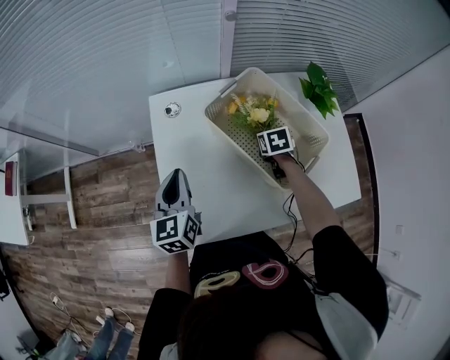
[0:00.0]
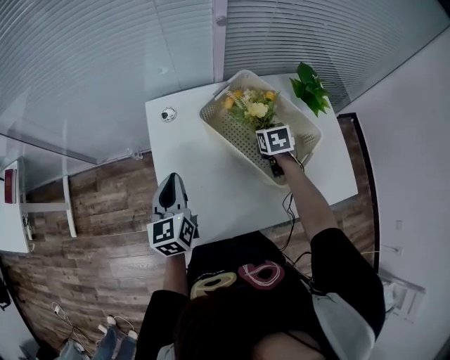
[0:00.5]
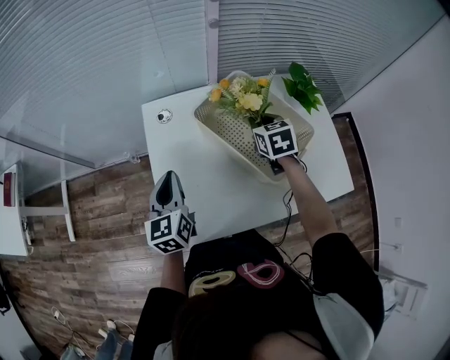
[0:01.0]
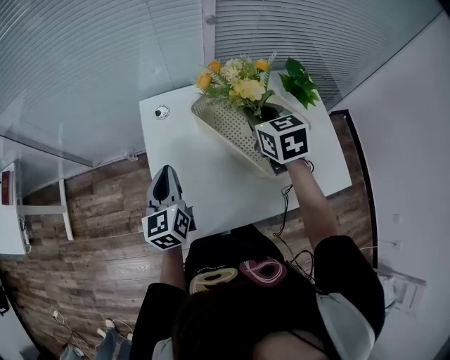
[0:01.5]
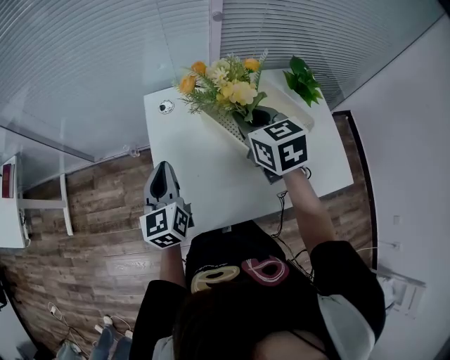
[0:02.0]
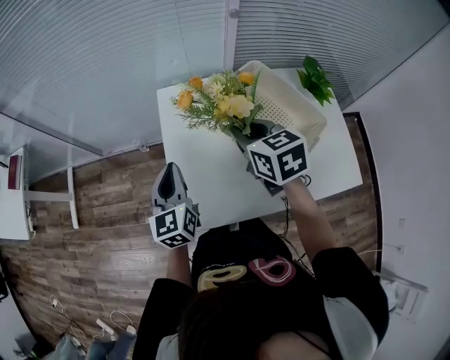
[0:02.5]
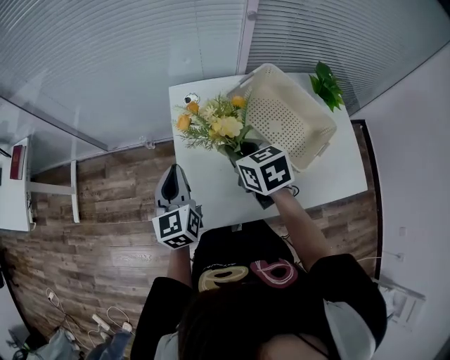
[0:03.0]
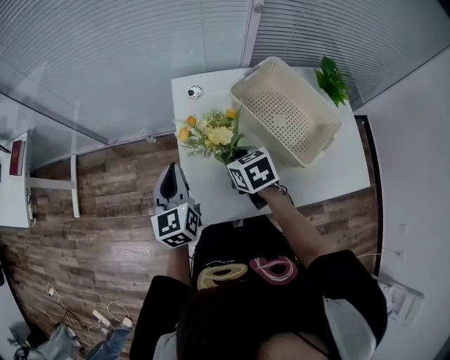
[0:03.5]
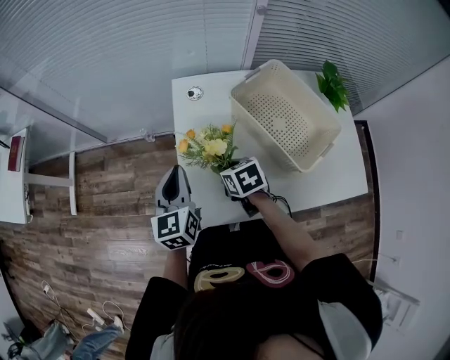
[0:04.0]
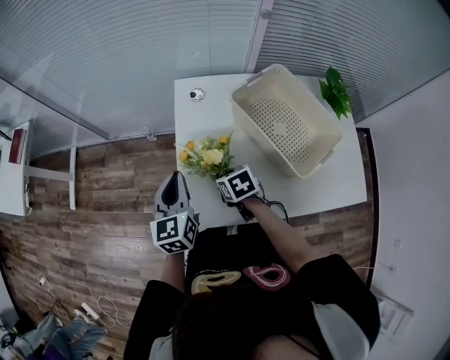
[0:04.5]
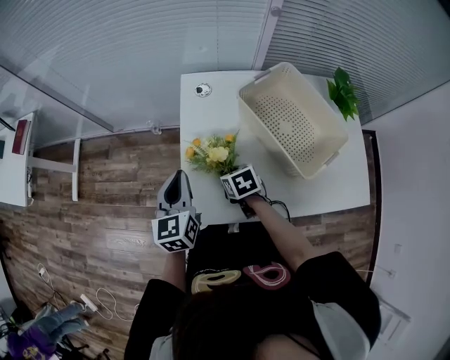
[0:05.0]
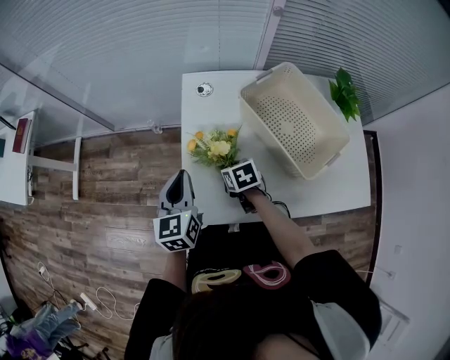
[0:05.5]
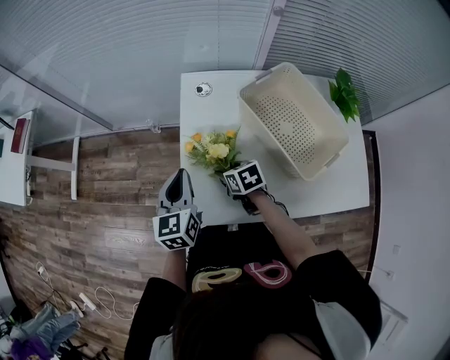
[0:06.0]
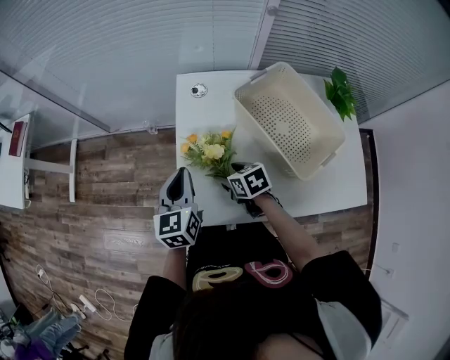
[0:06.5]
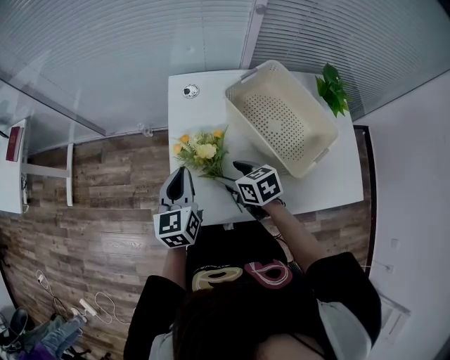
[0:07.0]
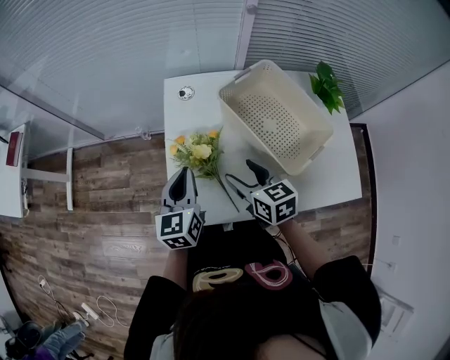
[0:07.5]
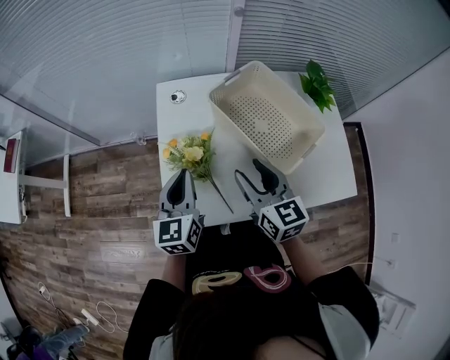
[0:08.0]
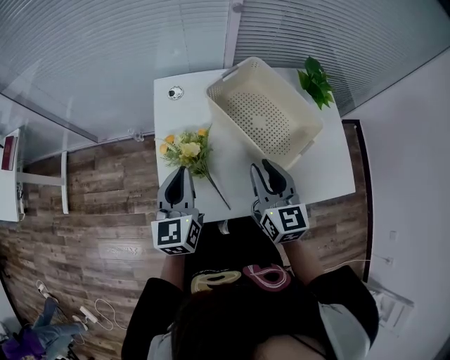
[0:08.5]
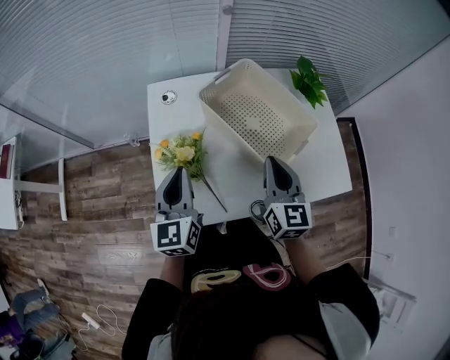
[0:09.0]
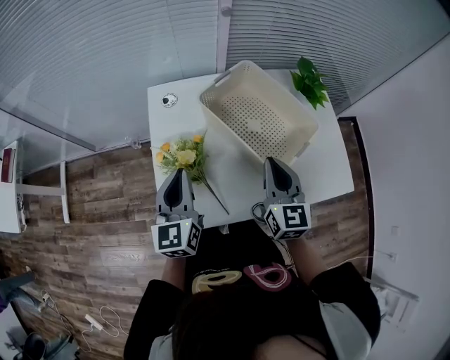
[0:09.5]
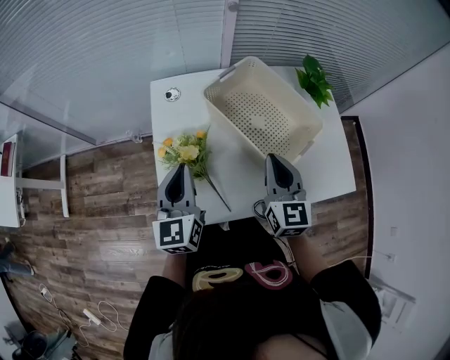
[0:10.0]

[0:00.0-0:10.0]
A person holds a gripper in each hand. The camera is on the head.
0:00.0 to 0:02.0: The right gripper shifts approximately 30 cm upward and to the left, and points its fingers approximately 30 degrees further upward.
0:02.0 to 0:04.0: The left gripper heads to the left, covering some 5 cm. Meanwhile the right gripper heads downward and to the left, covering approximately 25 cm, and swivels some 30 degrees.
0:04.0 to 0:06.0: The right gripper heads downward, covering some 5 cm, and opens up.
0:06.0 to 0:08.0: The right gripper is displaced upward and to the right by some 25 cm, and angles its fingers upward, by some 40 degrees, while the left gripper heads to the right, covering approximately 10 cm.
0:08.0 to 0:10.0: The right gripper goes some 5 cm to the right, rotates approximately 20 degrees, and closes.

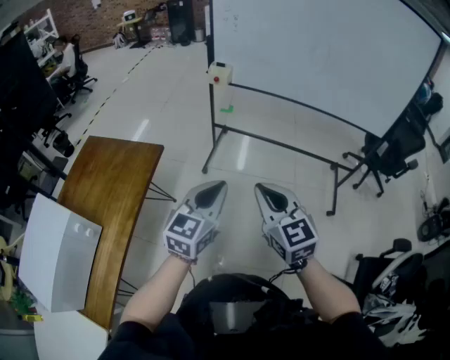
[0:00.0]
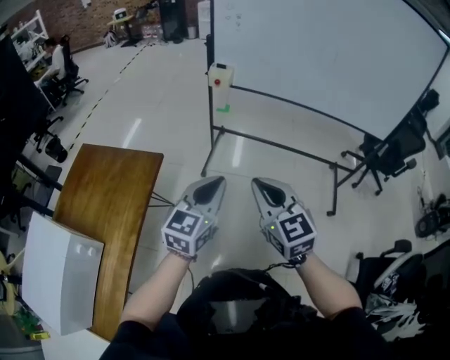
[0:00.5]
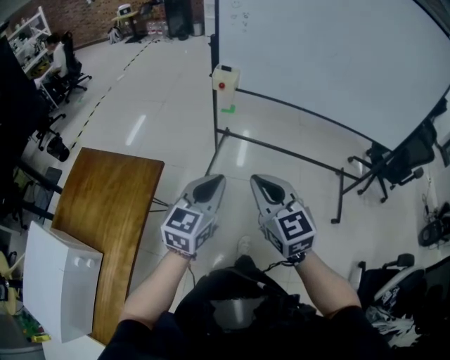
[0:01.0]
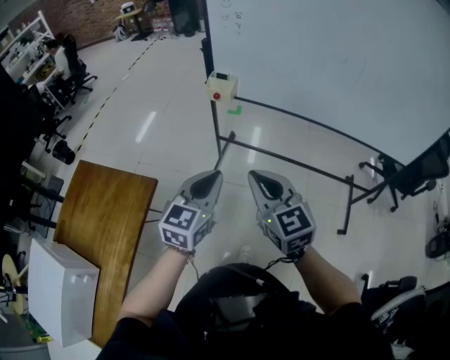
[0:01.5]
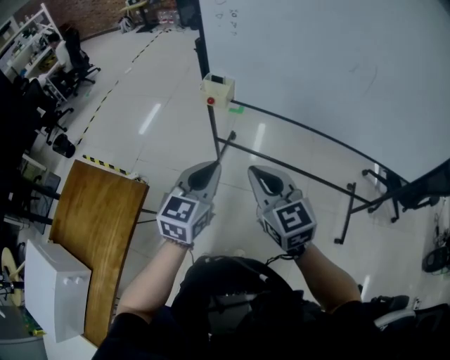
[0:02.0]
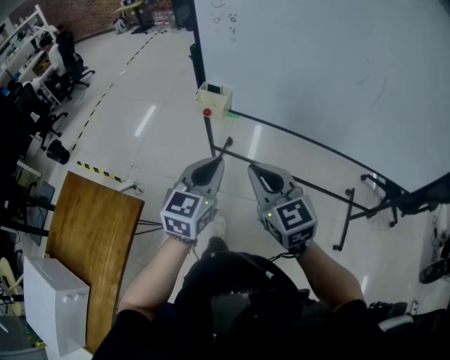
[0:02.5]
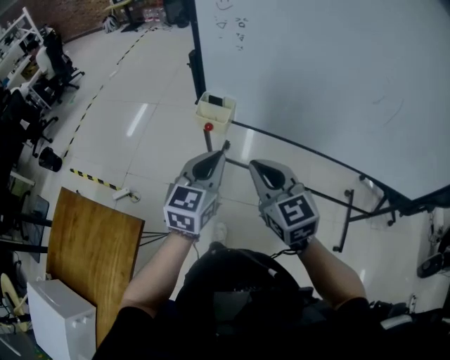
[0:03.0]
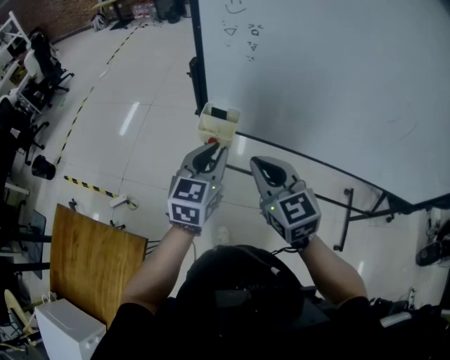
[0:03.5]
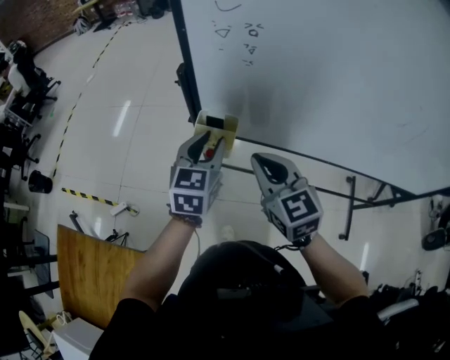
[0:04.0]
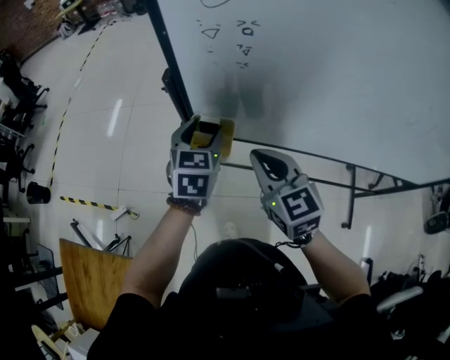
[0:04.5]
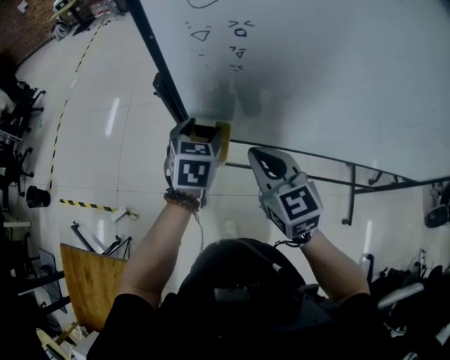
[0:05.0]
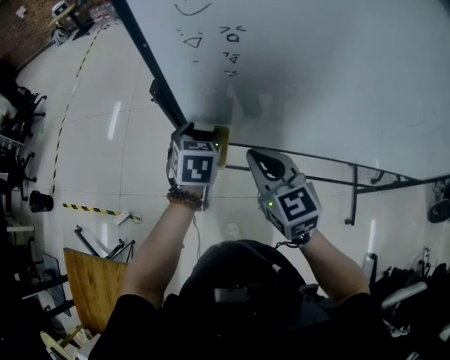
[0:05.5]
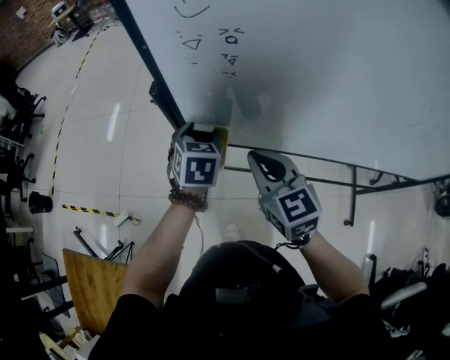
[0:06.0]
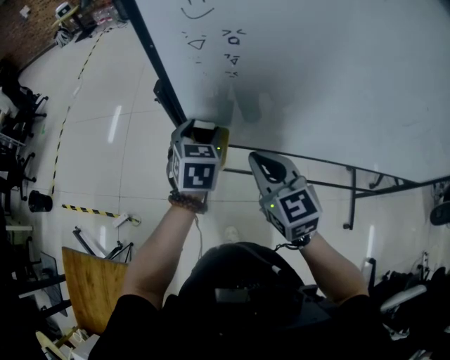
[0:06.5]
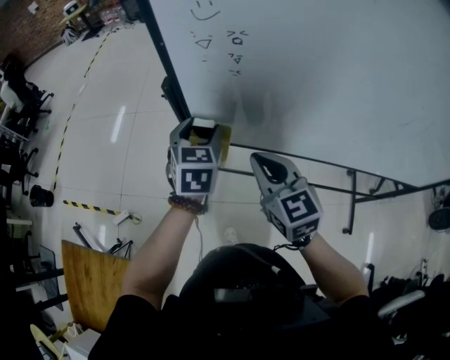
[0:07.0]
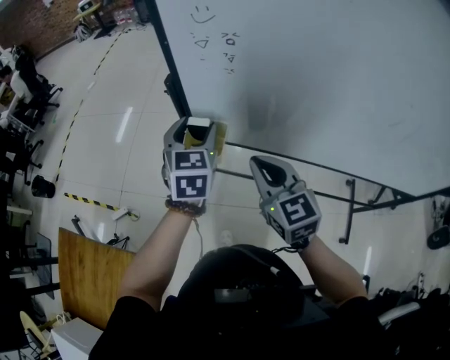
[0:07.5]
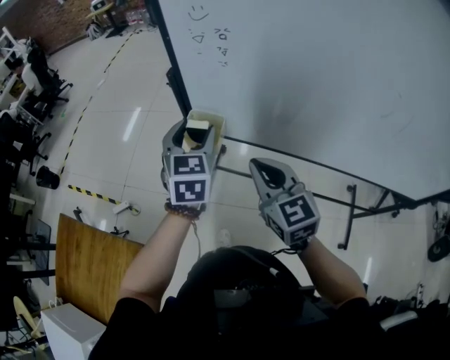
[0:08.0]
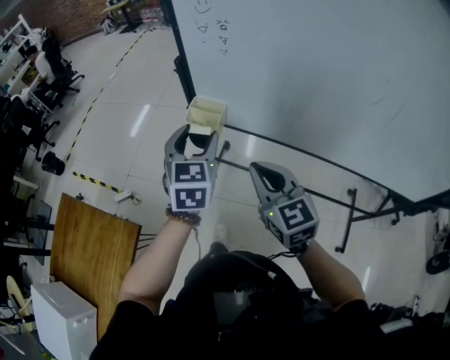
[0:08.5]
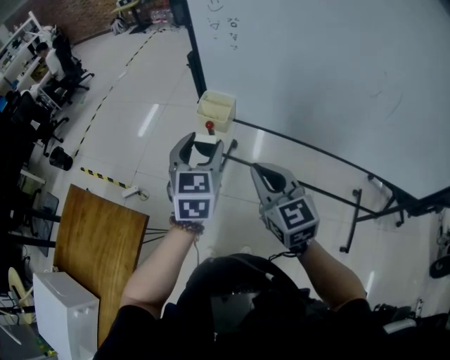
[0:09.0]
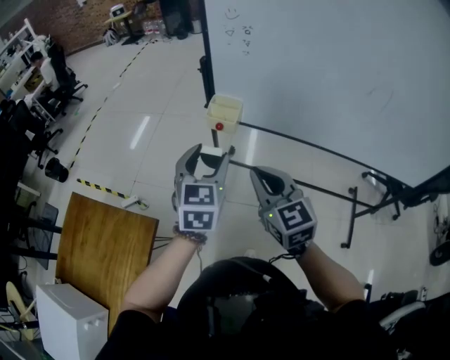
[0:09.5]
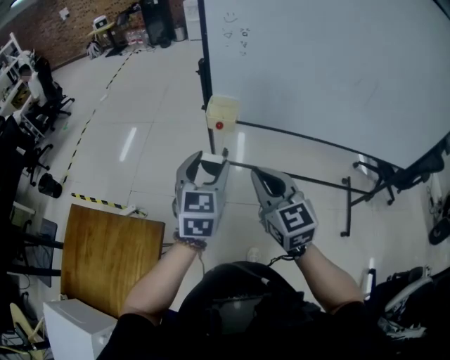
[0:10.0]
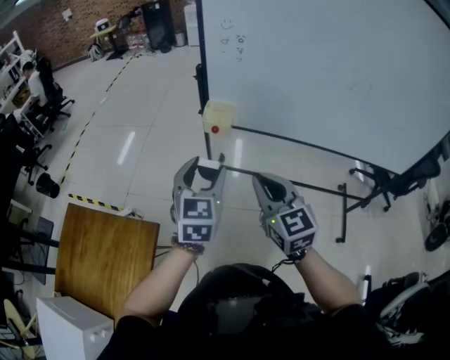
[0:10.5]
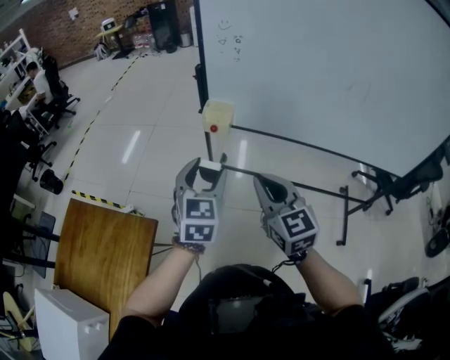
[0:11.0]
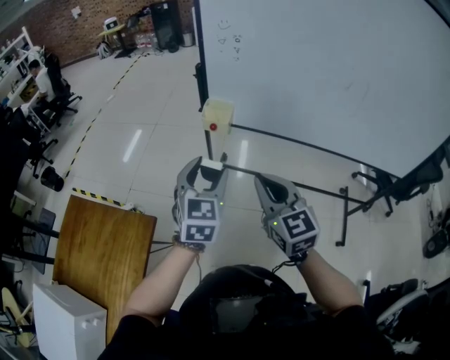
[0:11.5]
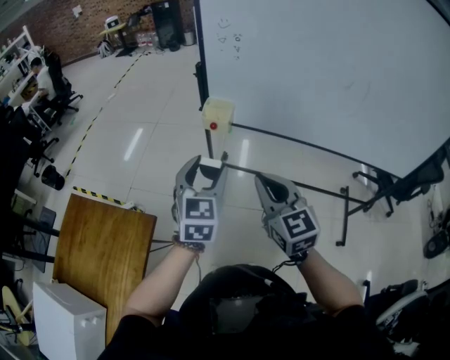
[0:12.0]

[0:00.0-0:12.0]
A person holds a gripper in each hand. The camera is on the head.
0:00.0 to 0:02.0: Both grippers move forward, roughly 35 cm.
0:02.0 to 0:04.0: The two grippers go approximately 30 cm forward. The left gripper opens its fingers.
0:04.0 to 0:06.0: The right gripper moves forward, some 5 cm. Meanwhile the left gripper is displaced forward and downward by roughly 10 cm, rotates approximately 20 degrees, and opens.
0:06.0 to 0:08.0: The right gripper is displaced backward by approximately 10 cm. Meanwhile the left gripper travels upward and backward by some 15 cm, and rotates approximately 20 degrees.
0:08.0 to 0:10.0: The two grippers go roughly 20 cm backward and to the left.
0:10.0 to 0:12.0: The right gripper shifts by about 5 cm.

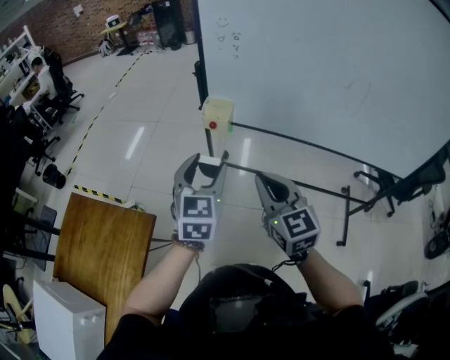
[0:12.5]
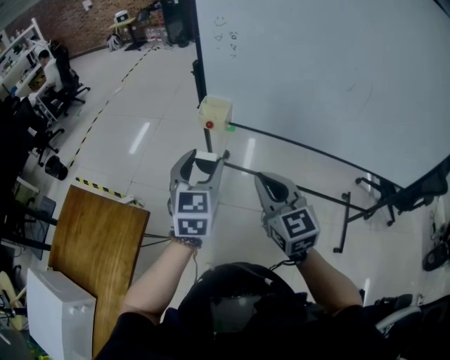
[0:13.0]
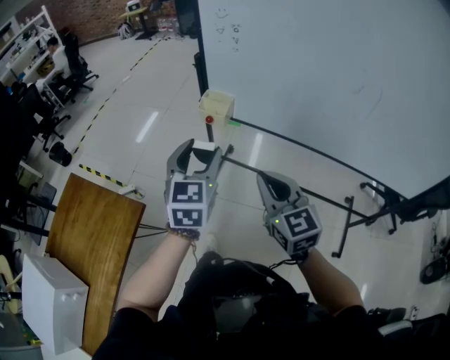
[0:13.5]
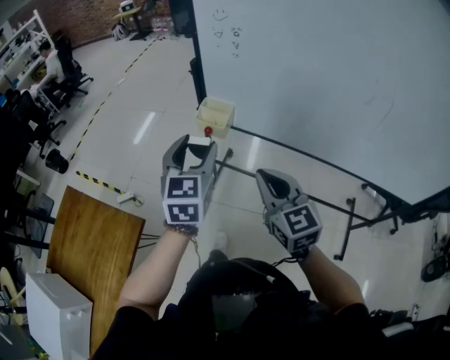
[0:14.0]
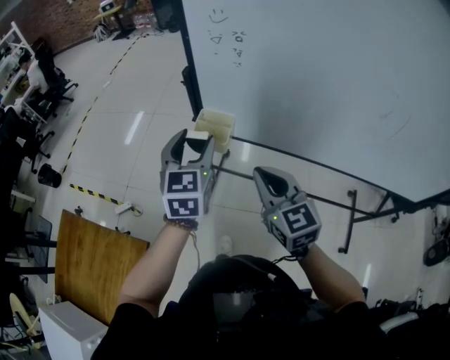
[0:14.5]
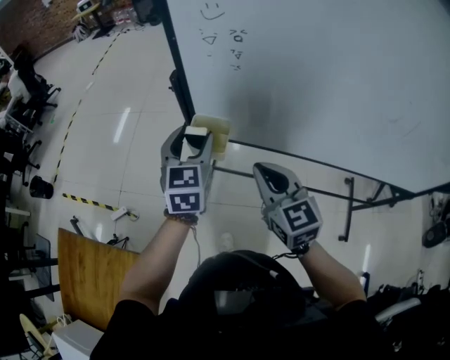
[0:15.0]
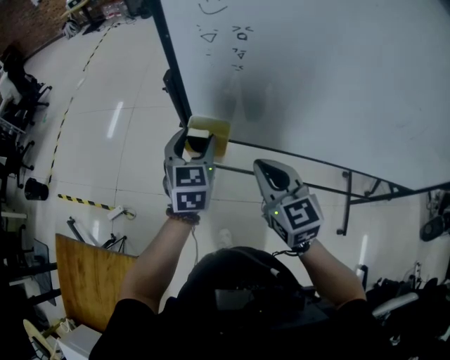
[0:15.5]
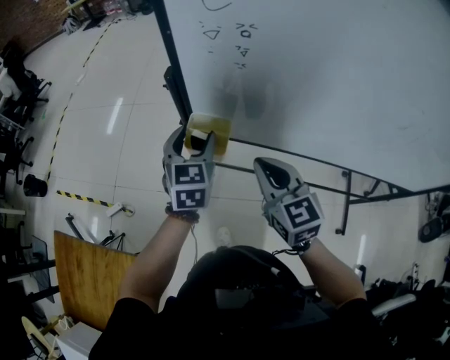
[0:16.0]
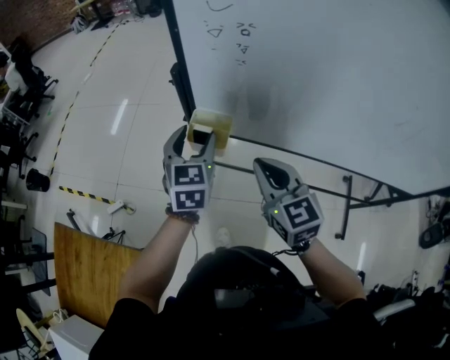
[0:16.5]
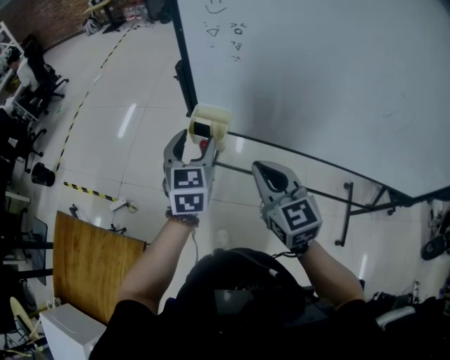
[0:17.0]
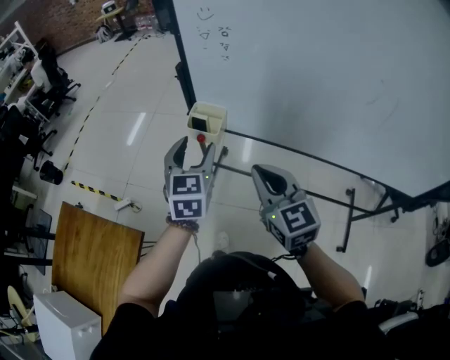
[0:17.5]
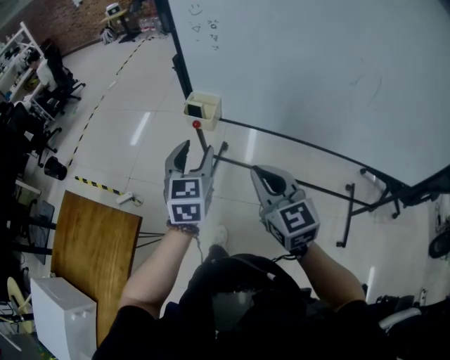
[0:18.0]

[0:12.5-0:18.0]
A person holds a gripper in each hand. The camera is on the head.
0:12.5 to 0:14.5: Both grippers move forward, about 20 cm.
0:14.5 to 0:16.0: The left gripper goes roughly 15 cm forward and downward; the right gripper is displaced forward by approximately 10 cm.
0:16.0 to 0:18.0: Both grippers travel together backward, roughly 20 cm.
